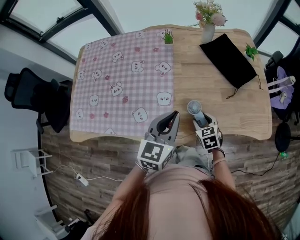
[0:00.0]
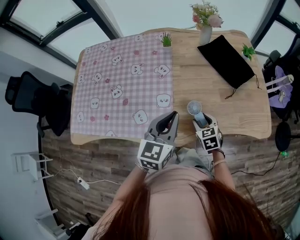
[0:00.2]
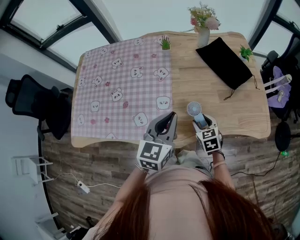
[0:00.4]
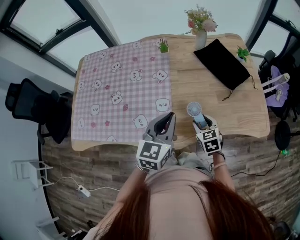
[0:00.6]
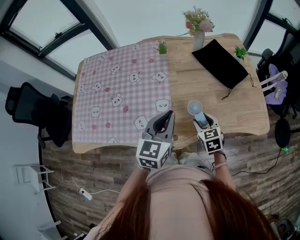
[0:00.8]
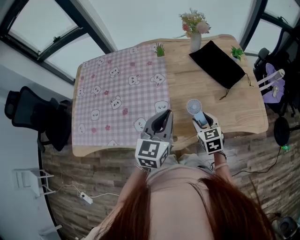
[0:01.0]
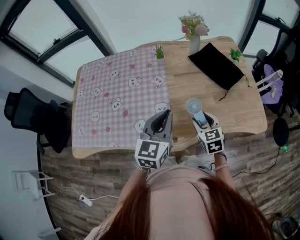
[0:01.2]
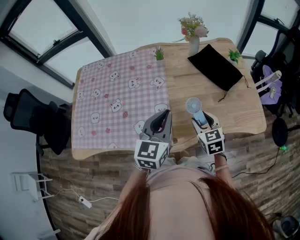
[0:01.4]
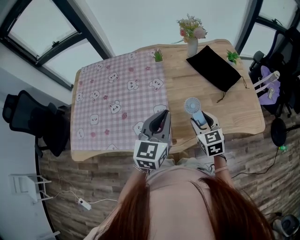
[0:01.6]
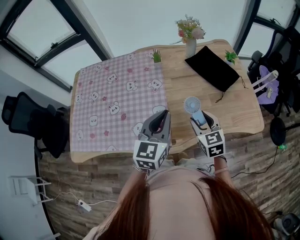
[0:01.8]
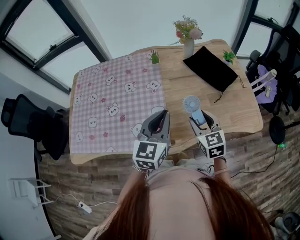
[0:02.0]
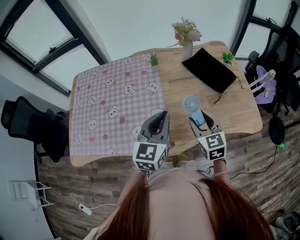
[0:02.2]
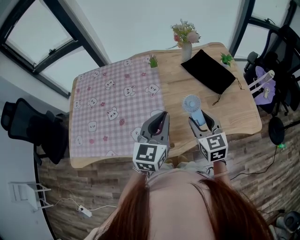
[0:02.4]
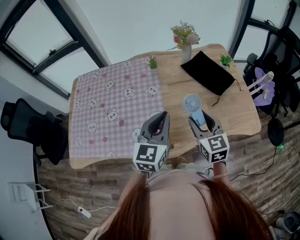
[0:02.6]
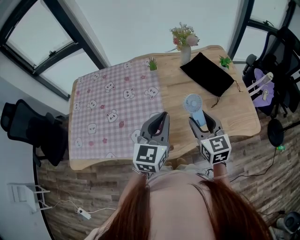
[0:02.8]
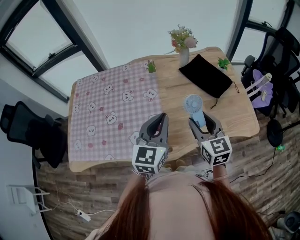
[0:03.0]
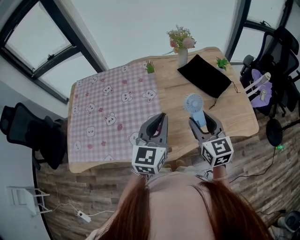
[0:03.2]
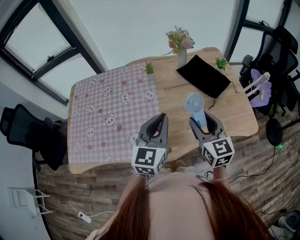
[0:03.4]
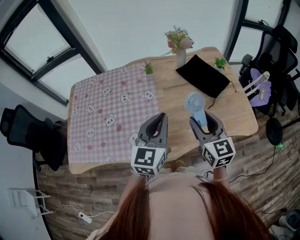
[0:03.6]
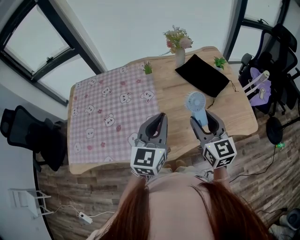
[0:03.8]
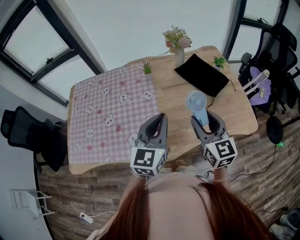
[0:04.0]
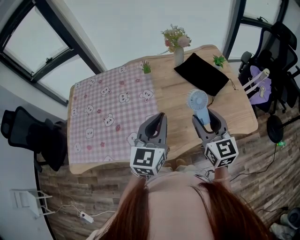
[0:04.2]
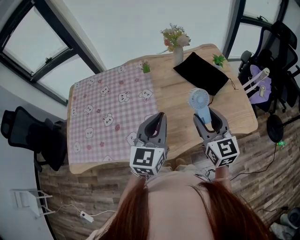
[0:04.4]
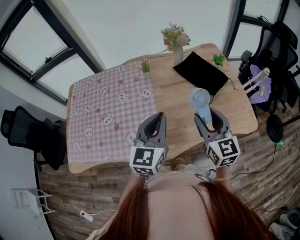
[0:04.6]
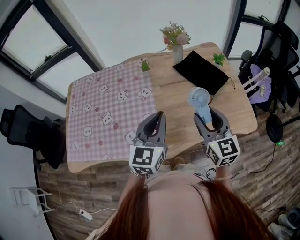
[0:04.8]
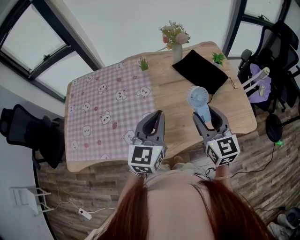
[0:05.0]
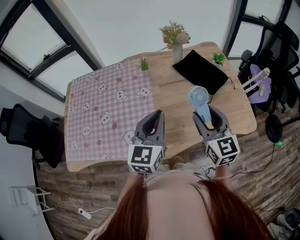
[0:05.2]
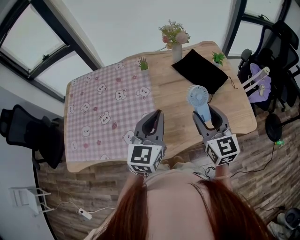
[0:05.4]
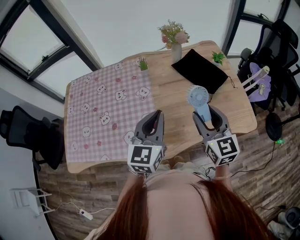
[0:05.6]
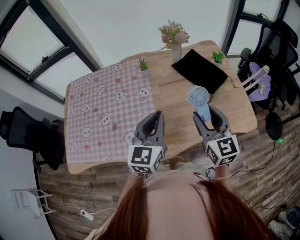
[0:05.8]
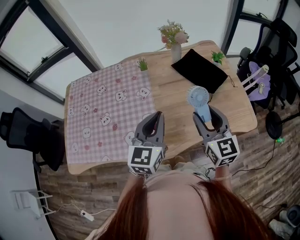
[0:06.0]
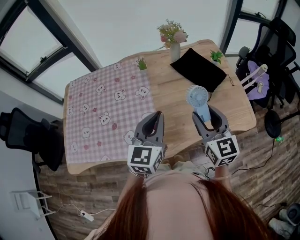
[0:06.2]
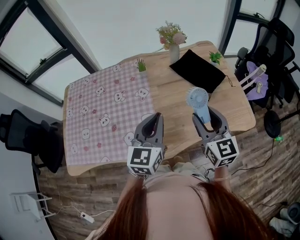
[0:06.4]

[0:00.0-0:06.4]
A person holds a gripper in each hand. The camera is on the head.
0:00.0 to 0:01.6: The left gripper shifts approximately 5 cm upward. The right gripper shifts roughly 15 cm upward.
0:01.6 to 0:03.2: The right gripper is displaced upward by some 10 cm.
0:03.2 to 0:04.8: The right gripper changes place by some 5 cm.
0:04.8 to 0:06.4: The two grippers keep their place.

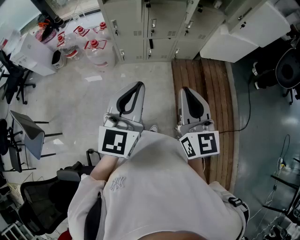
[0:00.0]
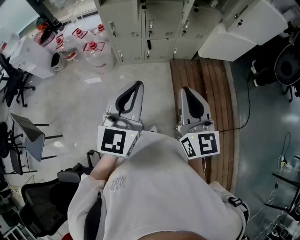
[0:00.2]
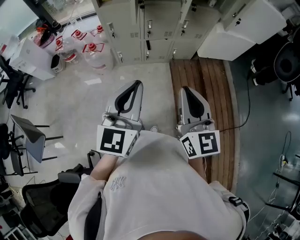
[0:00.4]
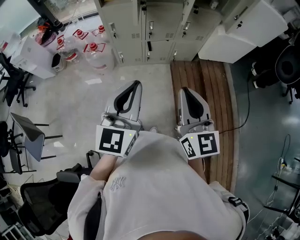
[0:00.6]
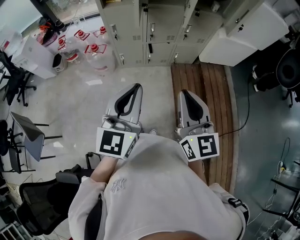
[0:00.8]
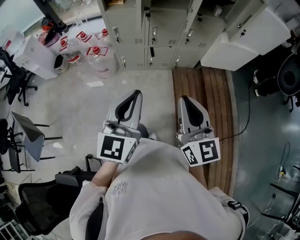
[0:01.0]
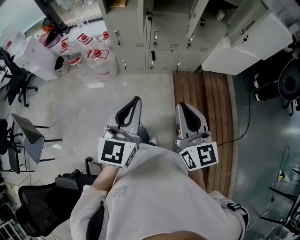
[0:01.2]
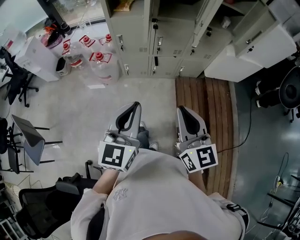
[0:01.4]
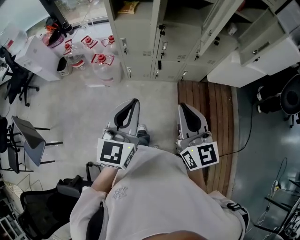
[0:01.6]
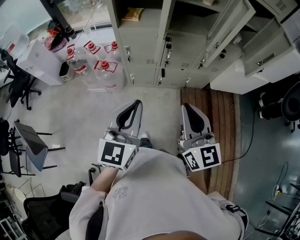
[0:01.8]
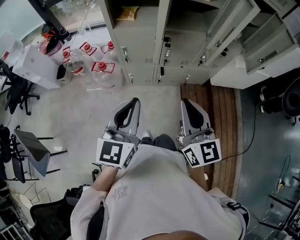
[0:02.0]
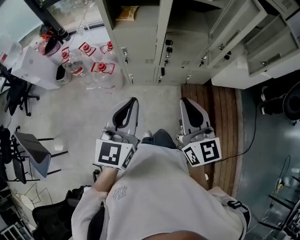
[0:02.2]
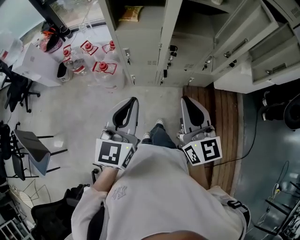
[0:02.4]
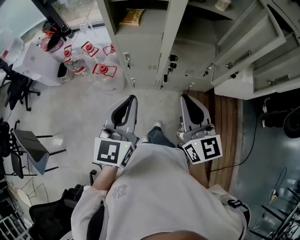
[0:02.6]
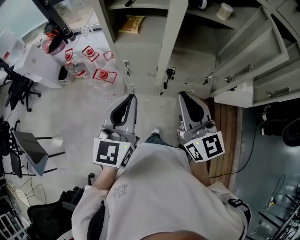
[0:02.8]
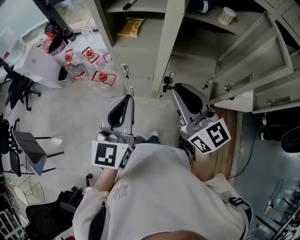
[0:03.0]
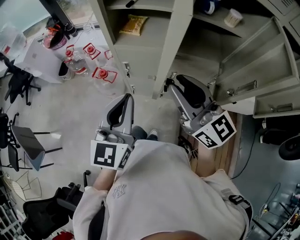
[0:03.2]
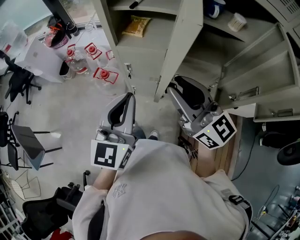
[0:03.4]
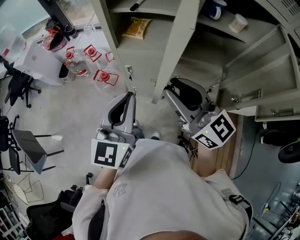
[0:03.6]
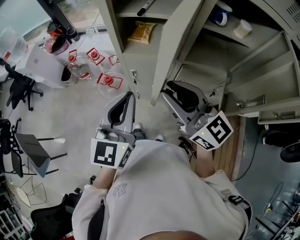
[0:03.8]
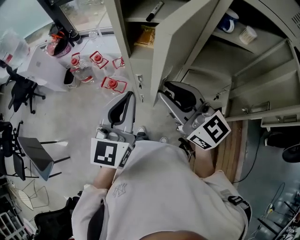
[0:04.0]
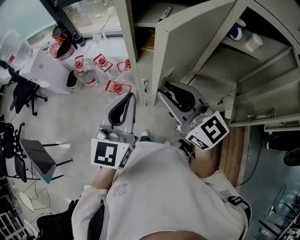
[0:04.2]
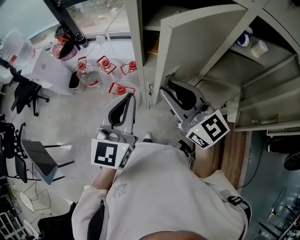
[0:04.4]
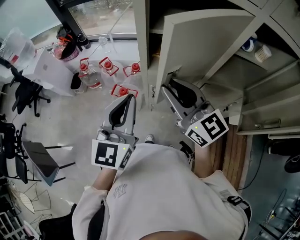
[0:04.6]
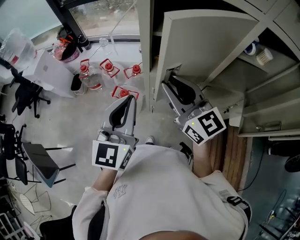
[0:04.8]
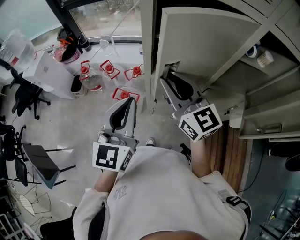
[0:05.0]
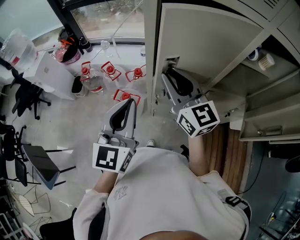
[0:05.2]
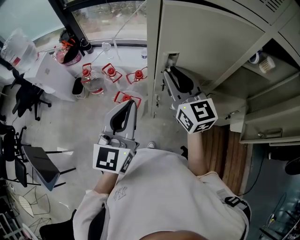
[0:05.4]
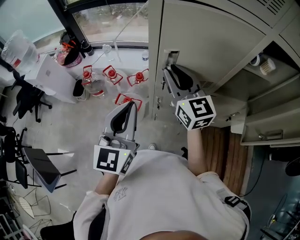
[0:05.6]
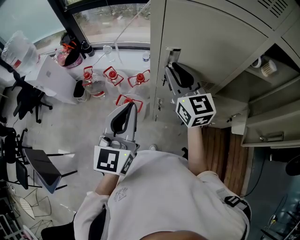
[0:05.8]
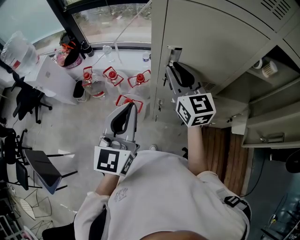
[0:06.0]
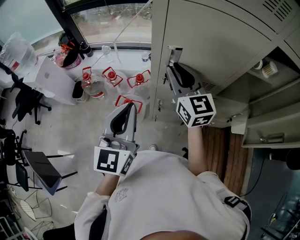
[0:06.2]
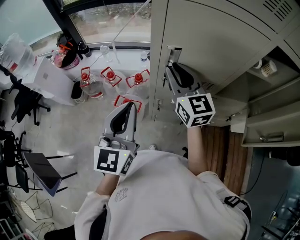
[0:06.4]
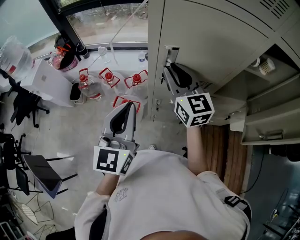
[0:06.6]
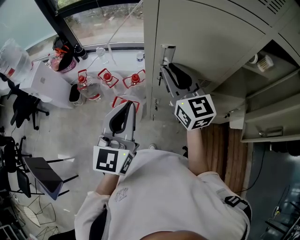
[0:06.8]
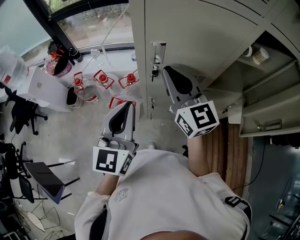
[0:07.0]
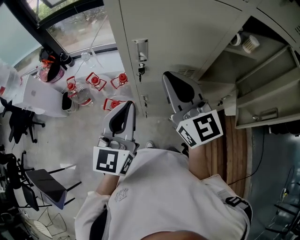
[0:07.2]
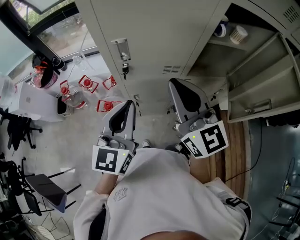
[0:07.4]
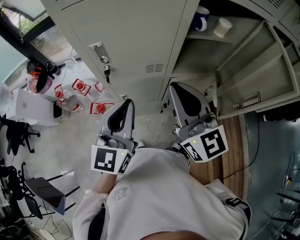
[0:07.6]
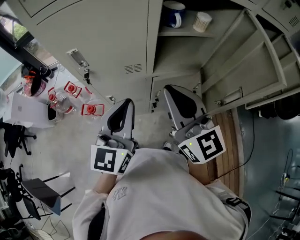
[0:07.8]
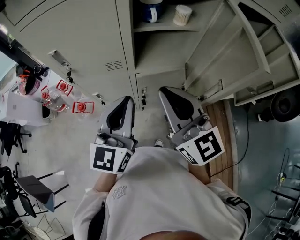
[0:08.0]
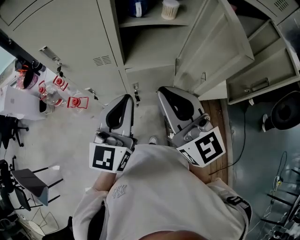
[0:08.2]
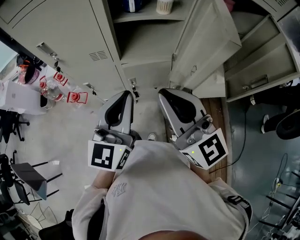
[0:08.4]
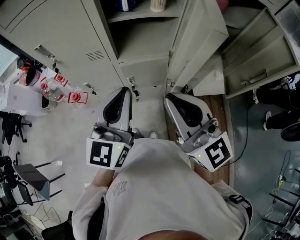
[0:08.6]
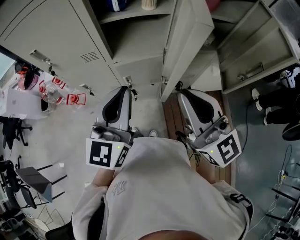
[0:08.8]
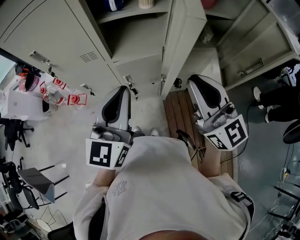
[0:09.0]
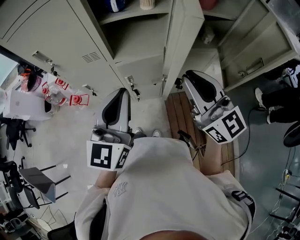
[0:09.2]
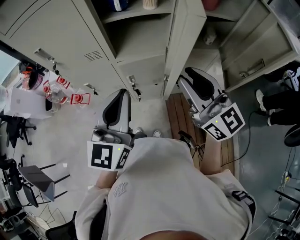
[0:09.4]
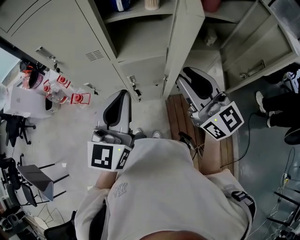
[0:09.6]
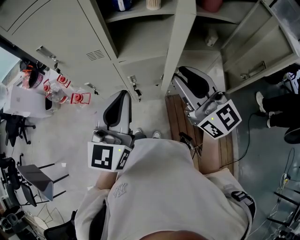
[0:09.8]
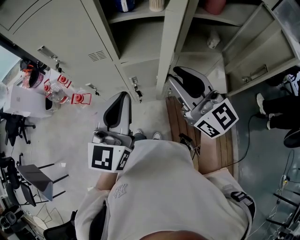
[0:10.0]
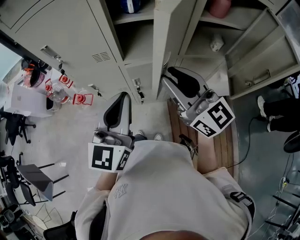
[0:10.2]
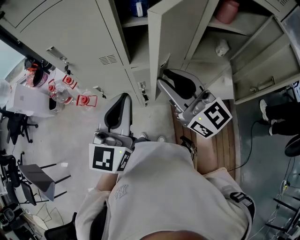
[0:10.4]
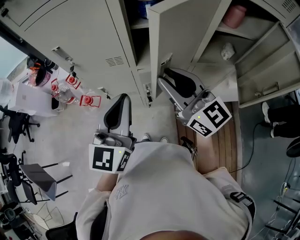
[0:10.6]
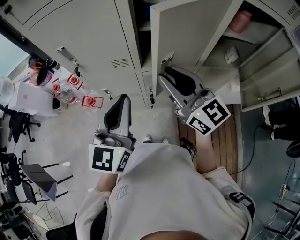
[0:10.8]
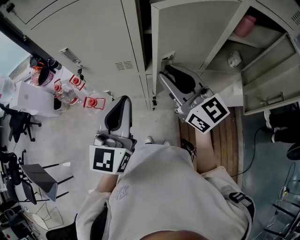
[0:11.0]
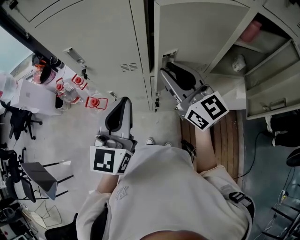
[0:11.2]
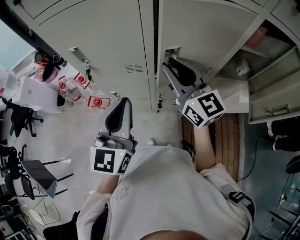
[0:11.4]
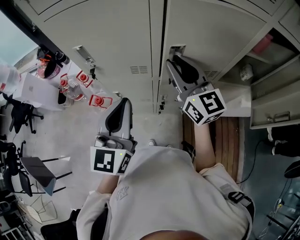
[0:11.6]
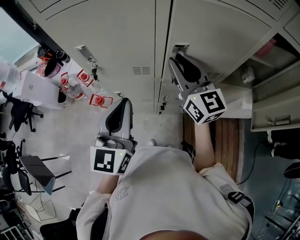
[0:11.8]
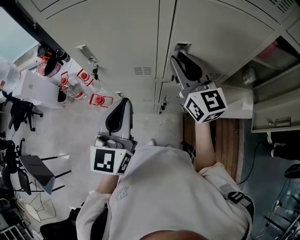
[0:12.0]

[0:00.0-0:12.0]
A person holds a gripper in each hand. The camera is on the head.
0:00.0 to 0:01.6: The grippers both shift forward by approximately 10 cm.
0:01.6 to 0:03.0: Both grippers move forward, approximately 25 cm. The right gripper swivels some 20 degrees.
0:03.0 to 0:04.4: The grippers both shift forward and to the left by some 20 cm.
0:04.4 to 0:06.0: The right gripper shifts about 15 cm forward, and rotates approximately 20 degrees, while the left gripper travels to the left and forward by about 10 cm.
0:06.0 to 0:07.6: The right gripper goes approximately 20 cm to the right and backward; the left gripper goes about 15 cm to the right.
0:07.6 to 0:09.0: Both grippers travel together to the right, some 30 cm.
0:09.0 to 0:10.4: The left gripper moves to the left, approximately 5 cm. The right gripper shifts roughly 15 cm to the left and forward.
0:10.4 to 0:12.0: The right gripper travels forward by approximately 15 cm; the left gripper moves to the left and forward, roughly 15 cm.

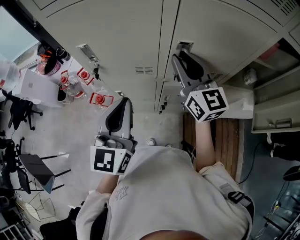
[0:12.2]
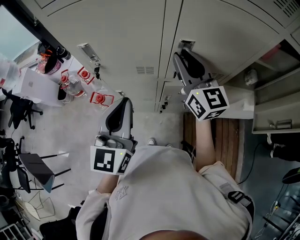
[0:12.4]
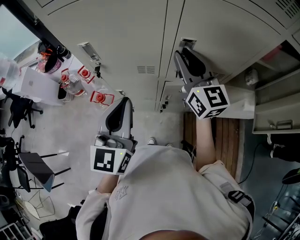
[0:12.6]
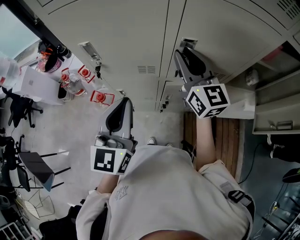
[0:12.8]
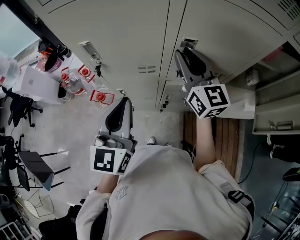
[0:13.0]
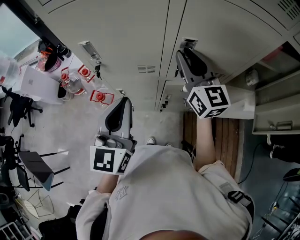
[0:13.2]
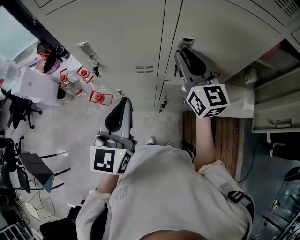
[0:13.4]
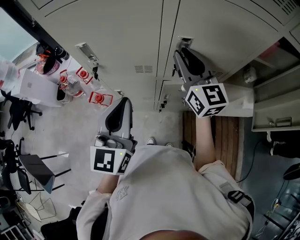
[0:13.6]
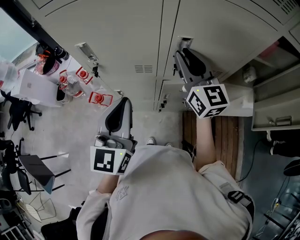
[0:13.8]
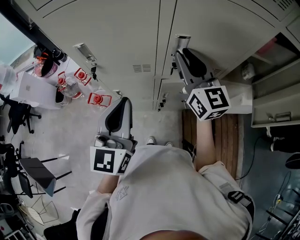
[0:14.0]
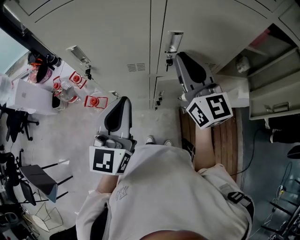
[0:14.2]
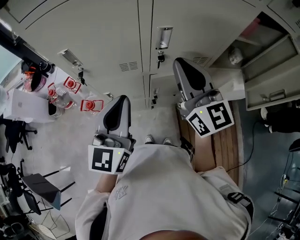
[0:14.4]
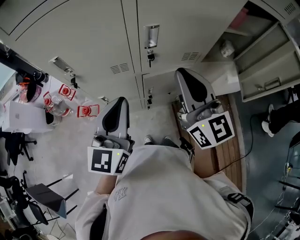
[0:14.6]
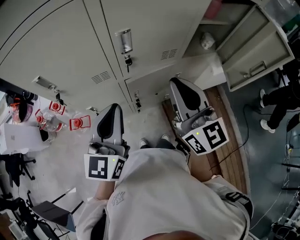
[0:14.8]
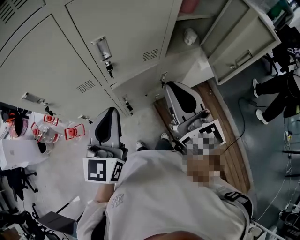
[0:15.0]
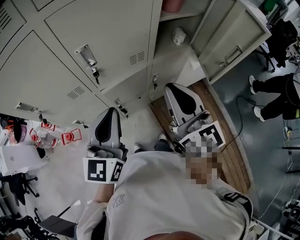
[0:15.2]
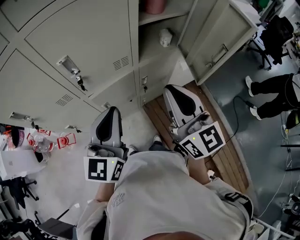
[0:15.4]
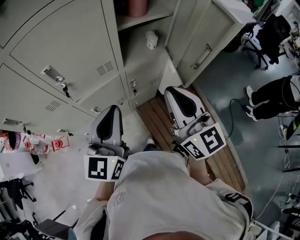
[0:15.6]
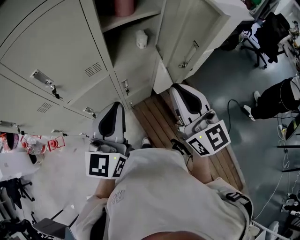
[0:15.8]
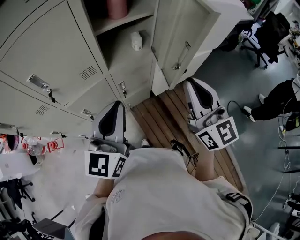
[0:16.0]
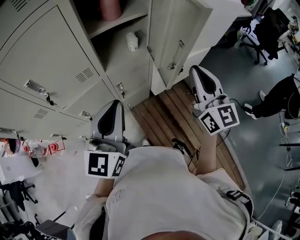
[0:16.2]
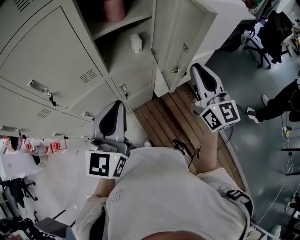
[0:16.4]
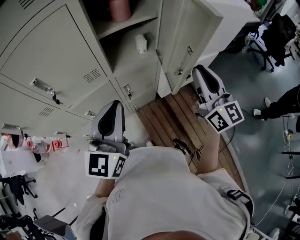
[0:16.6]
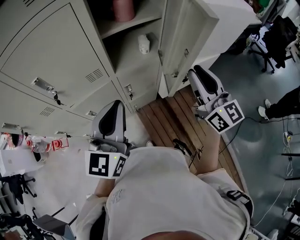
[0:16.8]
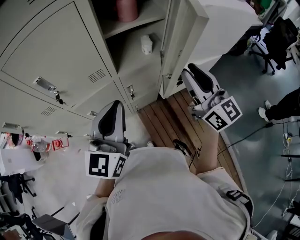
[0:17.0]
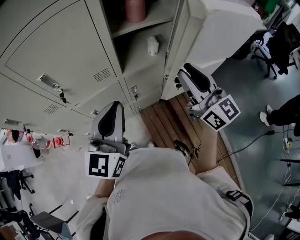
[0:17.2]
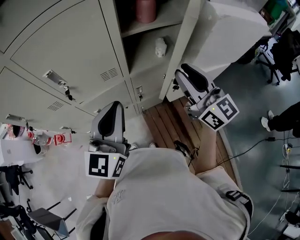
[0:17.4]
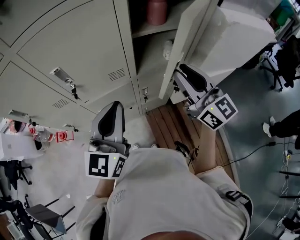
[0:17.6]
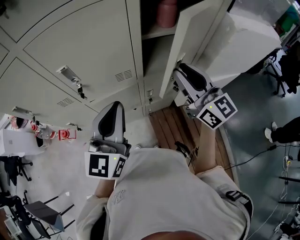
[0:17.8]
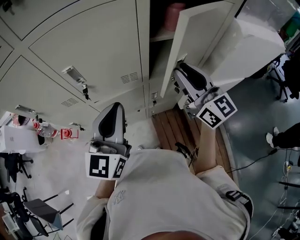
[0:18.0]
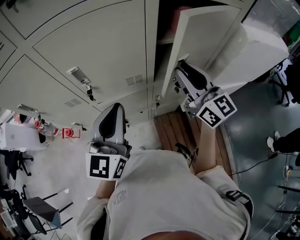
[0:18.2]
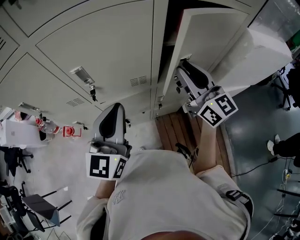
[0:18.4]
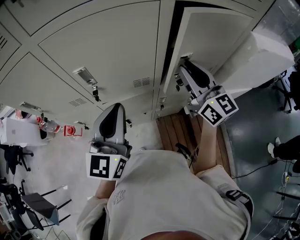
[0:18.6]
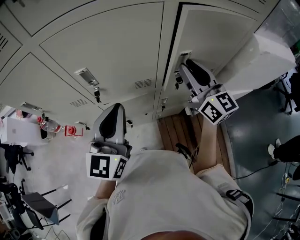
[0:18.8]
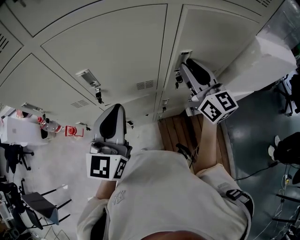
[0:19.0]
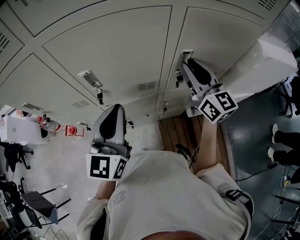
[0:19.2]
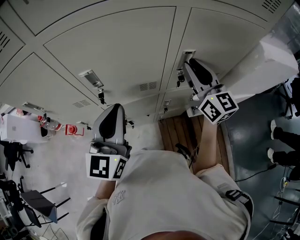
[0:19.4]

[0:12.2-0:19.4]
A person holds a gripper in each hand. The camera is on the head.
0:12.2 to 0:13.6: The grippers make only small movements.
0:13.6 to 0:15.0: The right gripper is displaced backward and to the right by about 20 cm, and swivels approximately 20 degrees. The left gripper is displaced to the right by about 10 cm, and turns by roughly 20 degrees.
0:15.0 to 0:16.6: The grippers both shift to the right by some 30 cm.
0:16.6 to 0:18.0: The left gripper moves to the left and forward, approximately 15 cm, while the right gripper travels to the left and forward by some 20 cm, and turns by some 20 degrees.
0:18.0 to 0:19.4: The right gripper moves forward, roughly 10 cm. Meanwhile the left gripper shifts approximately 5 cm to the left.
